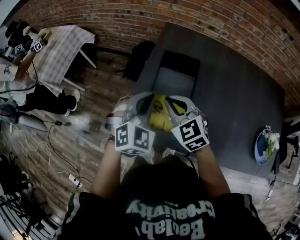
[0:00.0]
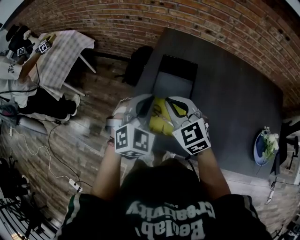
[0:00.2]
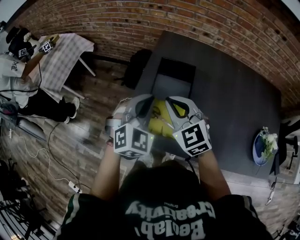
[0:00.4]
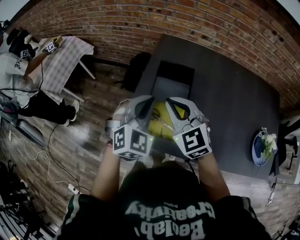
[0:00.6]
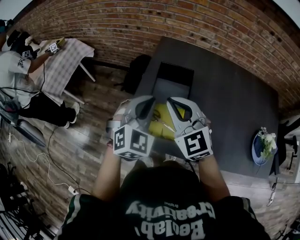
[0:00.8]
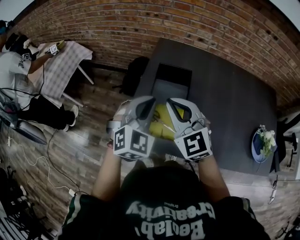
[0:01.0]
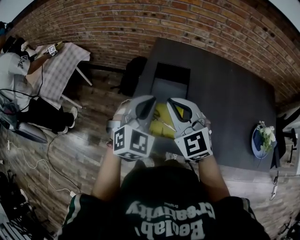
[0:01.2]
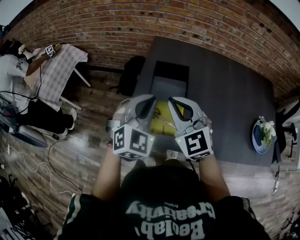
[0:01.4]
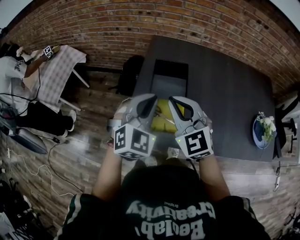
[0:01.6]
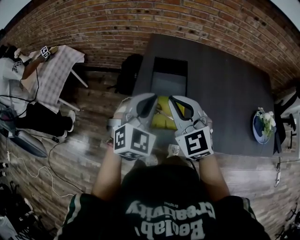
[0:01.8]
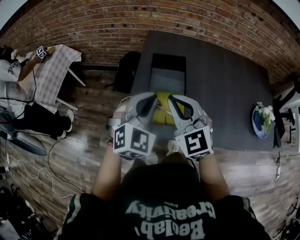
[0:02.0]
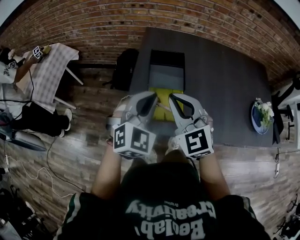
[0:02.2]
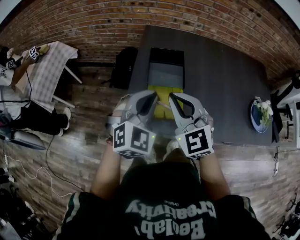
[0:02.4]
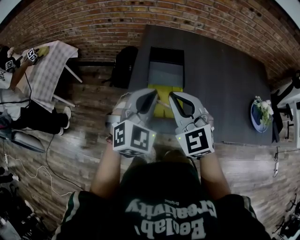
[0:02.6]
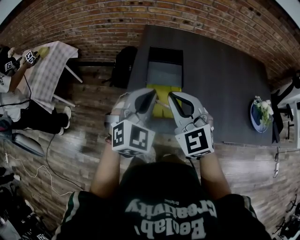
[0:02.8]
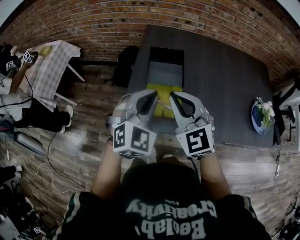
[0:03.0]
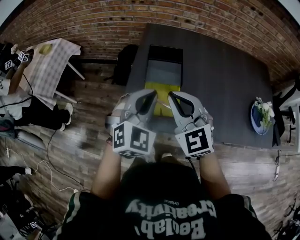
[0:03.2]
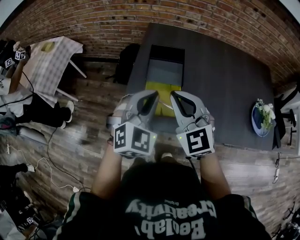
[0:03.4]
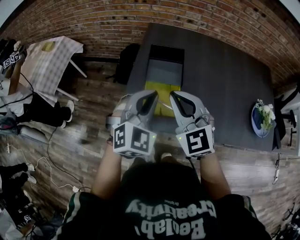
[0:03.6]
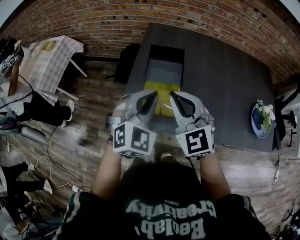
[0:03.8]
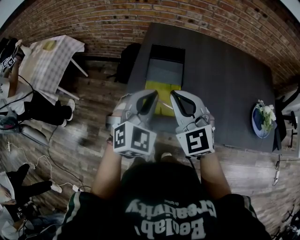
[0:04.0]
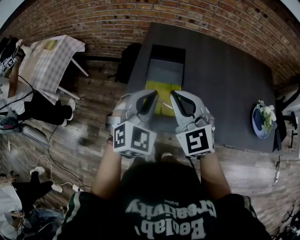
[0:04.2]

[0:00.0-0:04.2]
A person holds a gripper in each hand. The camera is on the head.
0:00.0 to 0:01.4: The left gripper heads upward, covering approximately 5 cm; the right gripper travels upward by roughly 10 cm.
0:01.4 to 0:02.8: Both grippers move backward, about 5 cm.
0:02.8 to 0:04.2: The grippers move only a little.

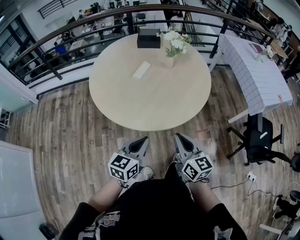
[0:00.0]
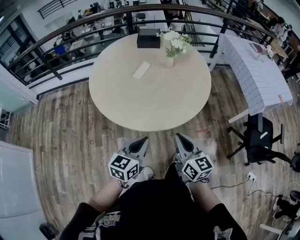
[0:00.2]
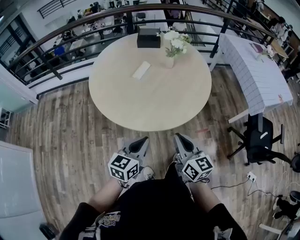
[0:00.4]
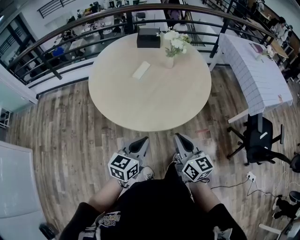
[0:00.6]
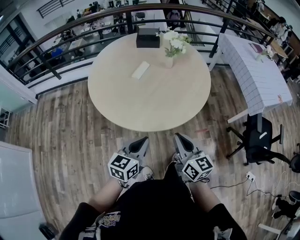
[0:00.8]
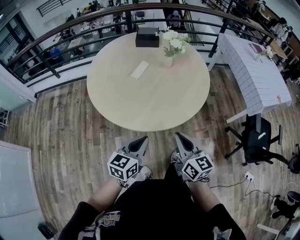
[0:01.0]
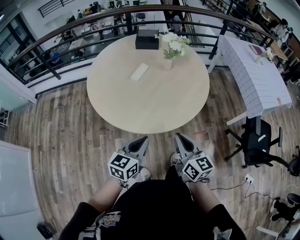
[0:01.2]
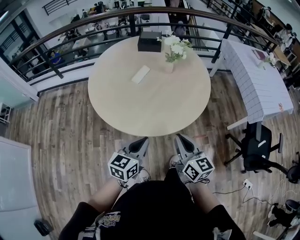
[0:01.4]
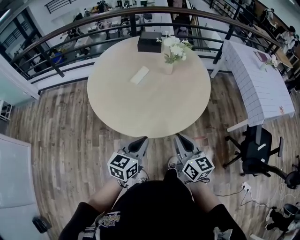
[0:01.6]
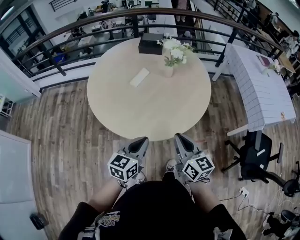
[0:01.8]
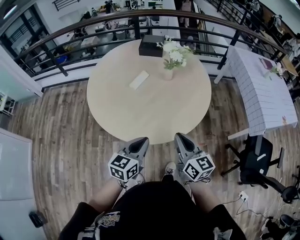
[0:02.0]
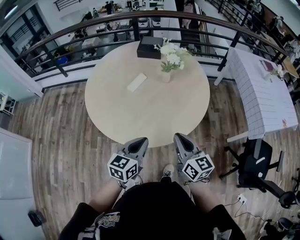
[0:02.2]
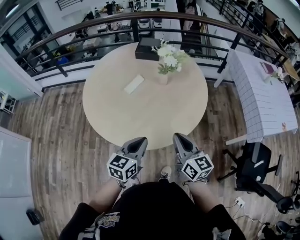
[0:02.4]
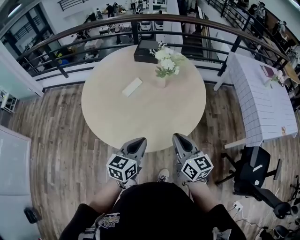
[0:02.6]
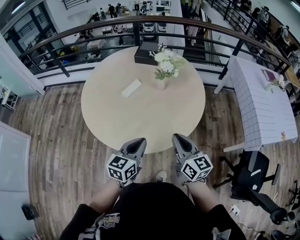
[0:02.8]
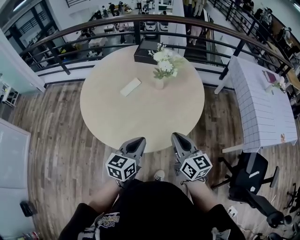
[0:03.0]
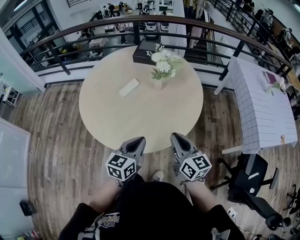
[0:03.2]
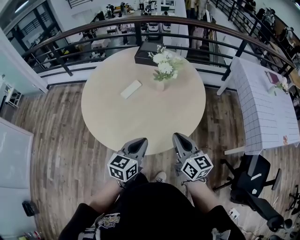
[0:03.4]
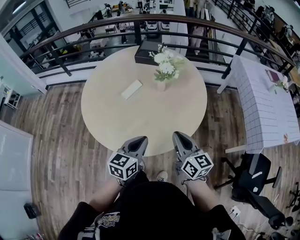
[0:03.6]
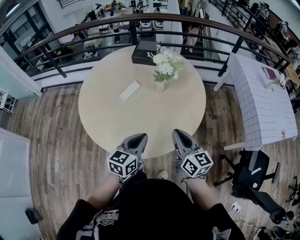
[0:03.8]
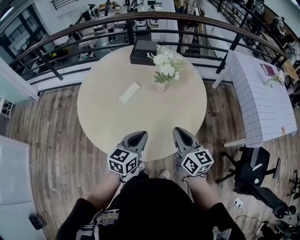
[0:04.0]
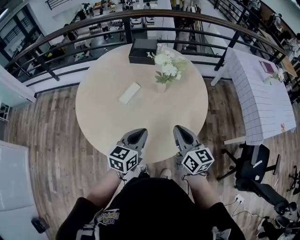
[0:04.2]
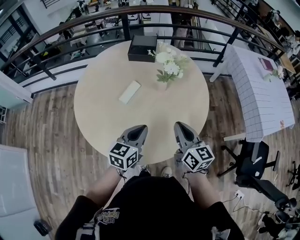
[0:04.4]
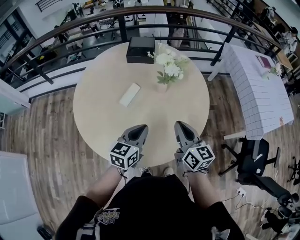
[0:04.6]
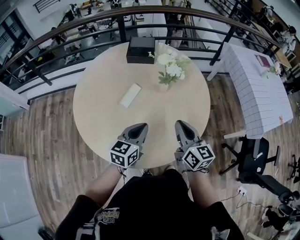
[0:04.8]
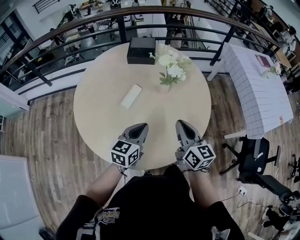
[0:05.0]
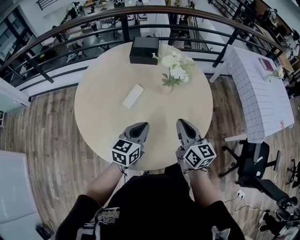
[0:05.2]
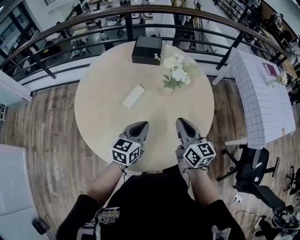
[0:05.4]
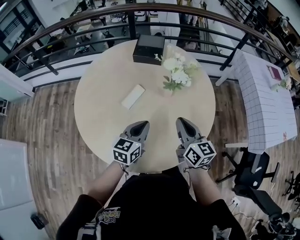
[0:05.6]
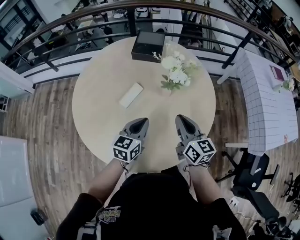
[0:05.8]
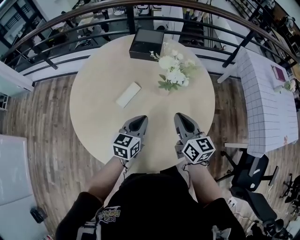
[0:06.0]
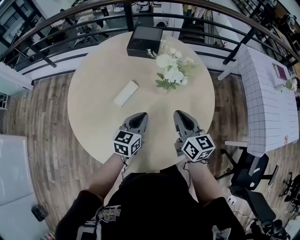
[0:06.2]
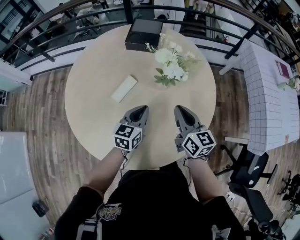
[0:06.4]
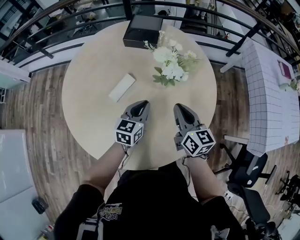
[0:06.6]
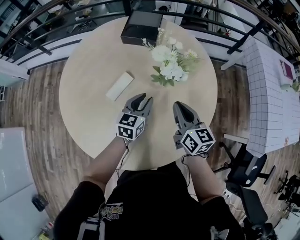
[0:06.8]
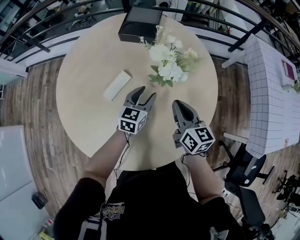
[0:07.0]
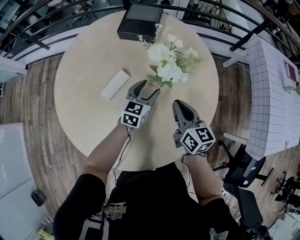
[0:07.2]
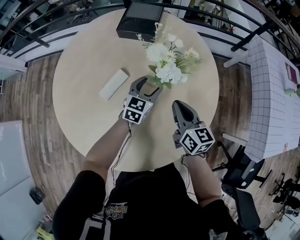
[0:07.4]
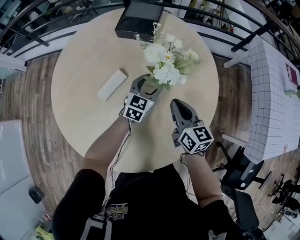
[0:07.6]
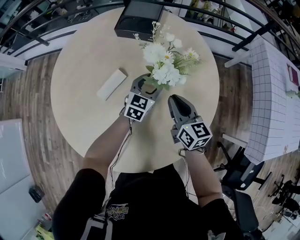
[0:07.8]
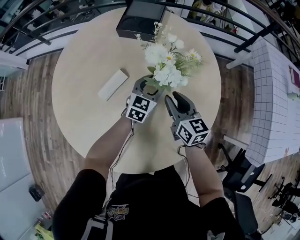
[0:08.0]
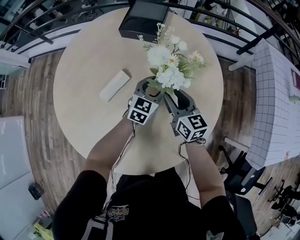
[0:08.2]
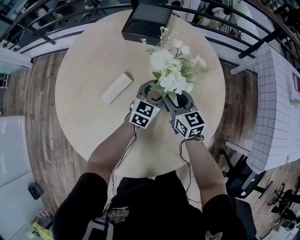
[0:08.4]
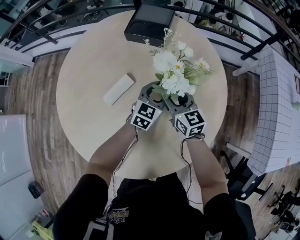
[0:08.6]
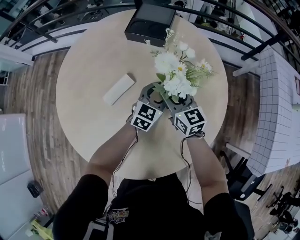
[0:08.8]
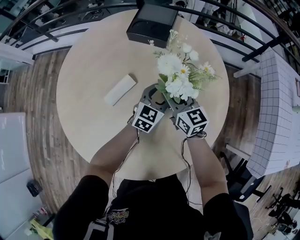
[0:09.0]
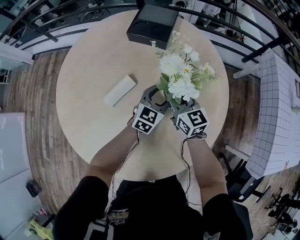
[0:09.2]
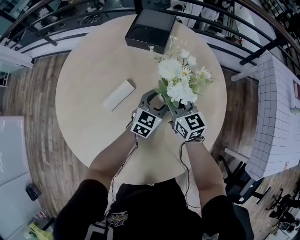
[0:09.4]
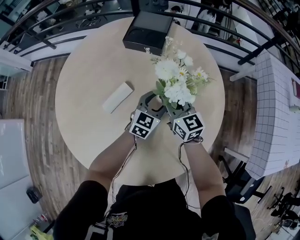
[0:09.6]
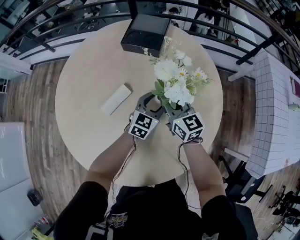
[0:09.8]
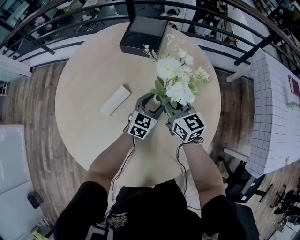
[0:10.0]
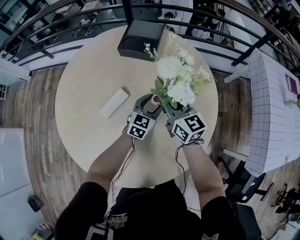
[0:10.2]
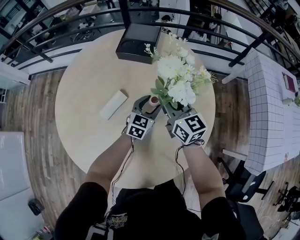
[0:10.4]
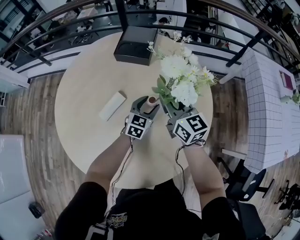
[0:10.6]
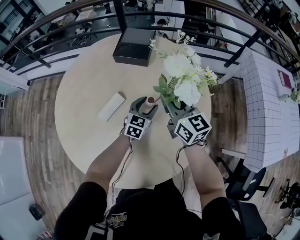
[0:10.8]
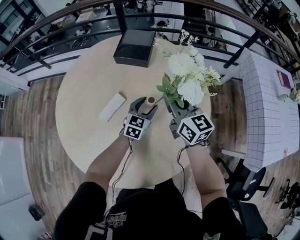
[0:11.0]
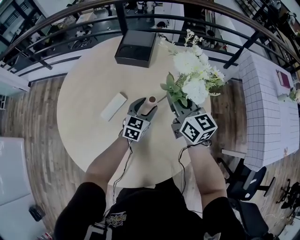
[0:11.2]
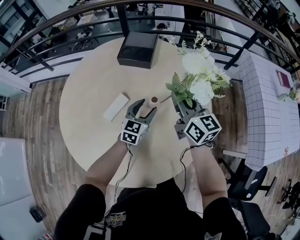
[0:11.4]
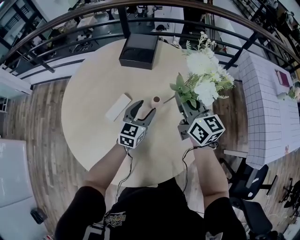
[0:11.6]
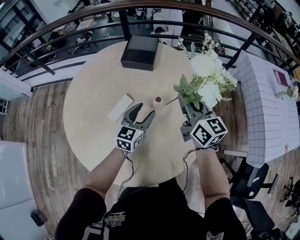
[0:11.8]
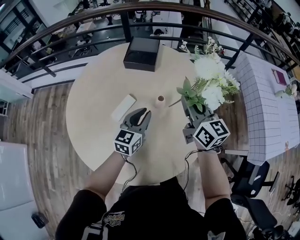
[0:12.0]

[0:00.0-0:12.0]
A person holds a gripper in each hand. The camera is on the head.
0:00.0 to 0:01.6: Both grippers travel together forward, about 5 cm.
0:01.6 to 0:03.0: The grippers both shift to the right and forward by some 15 cm.
0:03.0 to 0:04.4: The grippers both shift forward and to the left by about 15 cm.
0:04.4 to 0:06.0: The left gripper travels forward and downward by approximately 15 cm, while the right gripper goes roughly 10 cm forward.
0:06.0 to 0:07.6: The right gripper shifts some 15 cm forward and downward, while the left gripper heads forward, downward and to the right, covering roughly 25 cm, and opens its fingers.
0:07.6 to 0:09.0: The right gripper heads forward and to the left, covering approximately 10 cm, and opens up.
0:09.0 to 0:10.4: The right gripper is displaced upward by approximately 10 cm, and closes its fingers.
0:10.4 to 0:12.0: The left gripper heads upward, backward and to the left, covering roughly 20 cm, and closes, while the right gripper heads upward and backward, covering some 15 cm.

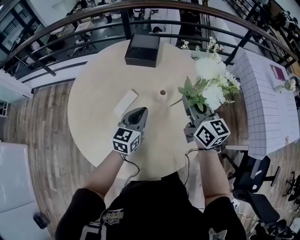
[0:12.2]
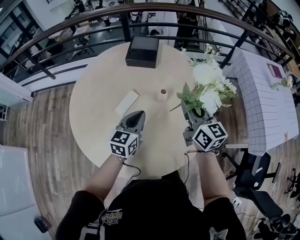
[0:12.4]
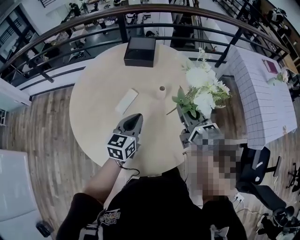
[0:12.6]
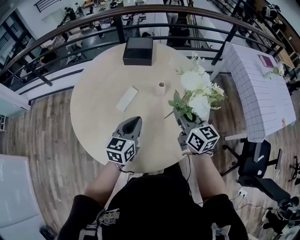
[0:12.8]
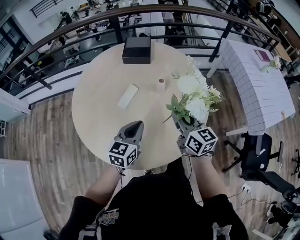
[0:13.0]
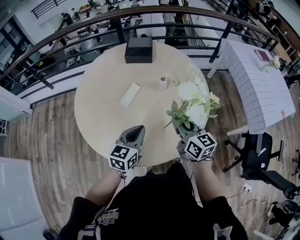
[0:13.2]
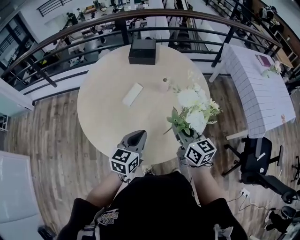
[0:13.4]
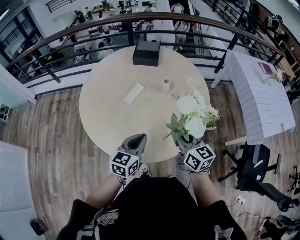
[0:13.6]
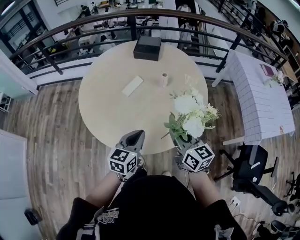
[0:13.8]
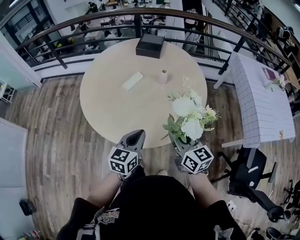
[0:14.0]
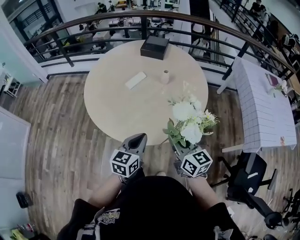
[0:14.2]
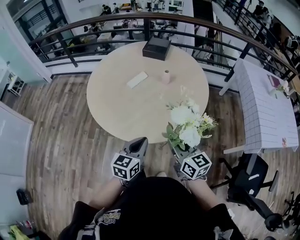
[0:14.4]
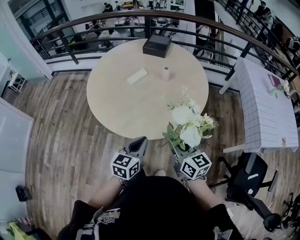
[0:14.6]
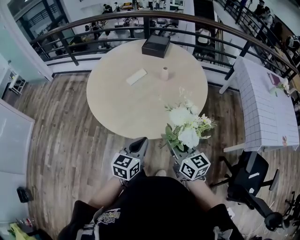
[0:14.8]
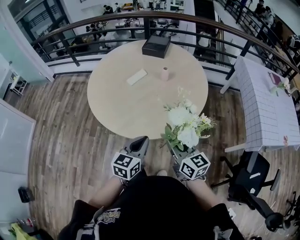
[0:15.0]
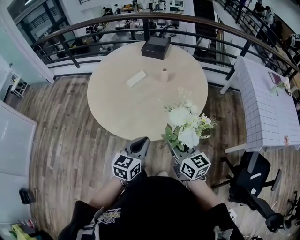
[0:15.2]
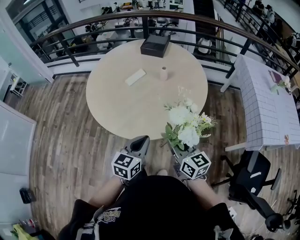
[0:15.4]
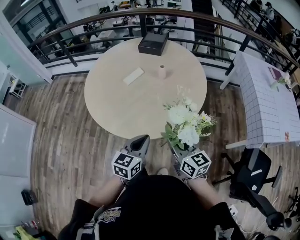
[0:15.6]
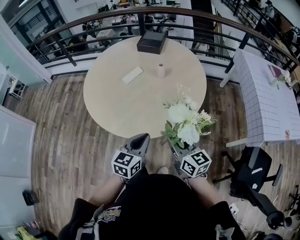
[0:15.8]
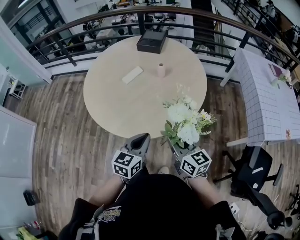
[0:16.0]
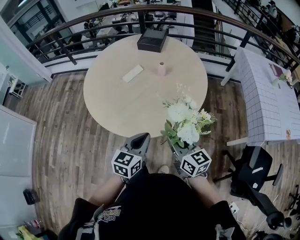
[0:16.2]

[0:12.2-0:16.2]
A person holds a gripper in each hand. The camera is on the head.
0:12.2 to 0:13.6: Both grippers move backward, some 25 cm.
0:13.6 to 0:14.8: The left gripper goes about 20 cm backward and to the right. The right gripper shifts about 15 cm backward.
0:14.8 to 0:16.2: The grippers move only a little.

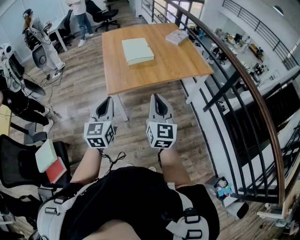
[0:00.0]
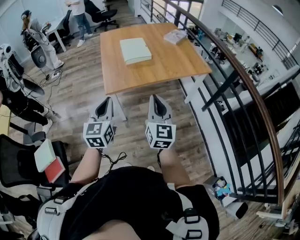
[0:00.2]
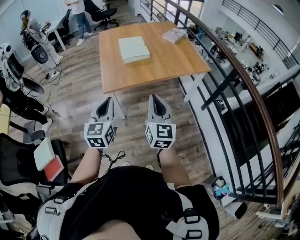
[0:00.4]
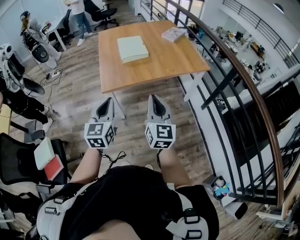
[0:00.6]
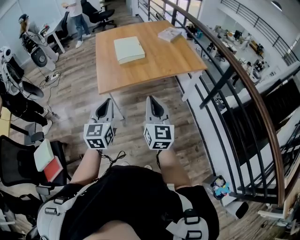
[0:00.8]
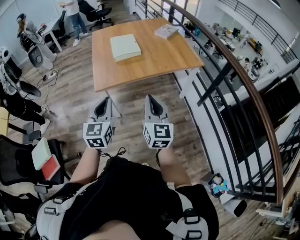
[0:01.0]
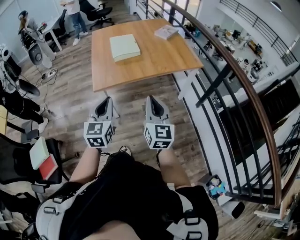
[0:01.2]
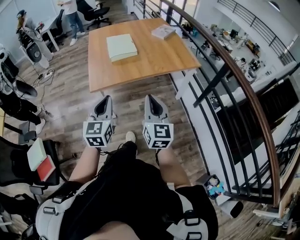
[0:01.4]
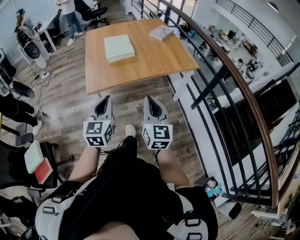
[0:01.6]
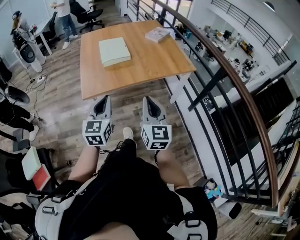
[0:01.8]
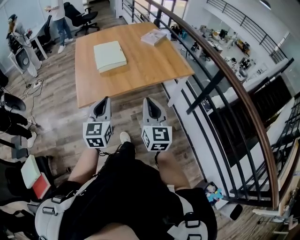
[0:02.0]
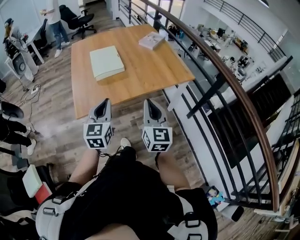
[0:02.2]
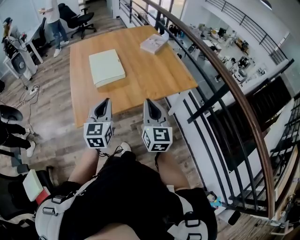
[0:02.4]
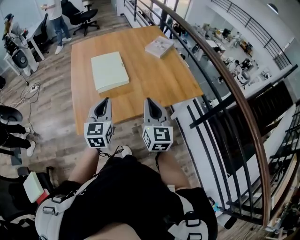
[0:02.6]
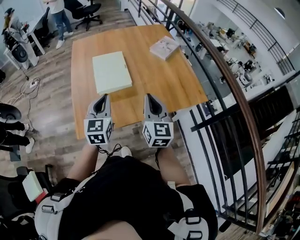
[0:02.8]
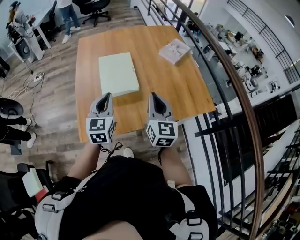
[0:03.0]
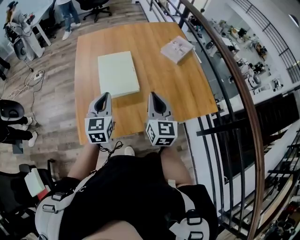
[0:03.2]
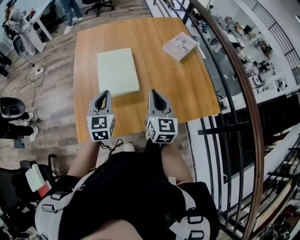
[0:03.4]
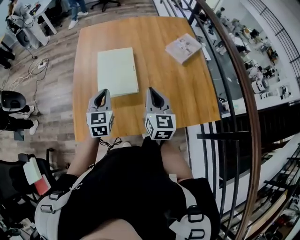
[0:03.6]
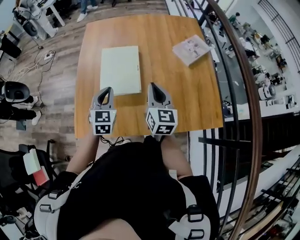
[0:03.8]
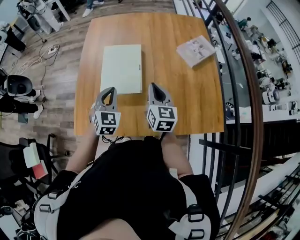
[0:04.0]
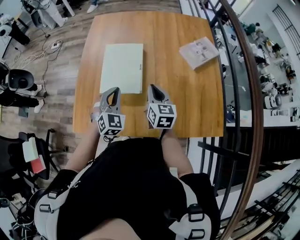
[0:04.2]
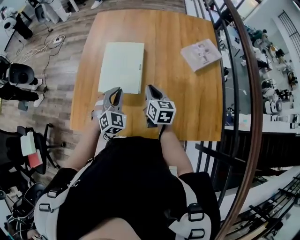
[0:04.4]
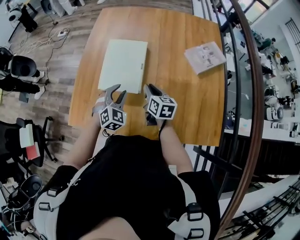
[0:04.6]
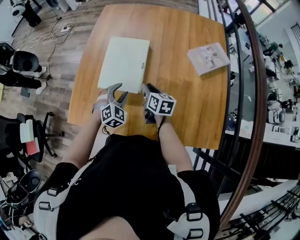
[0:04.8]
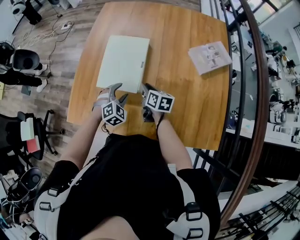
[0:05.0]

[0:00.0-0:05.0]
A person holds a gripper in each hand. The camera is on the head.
0:00.0 to 0:01.6: Both grippers move to the right, some 10 cm.
0:01.6 to 0:03.4: The pair of grippers is taken forward, approximately 50 cm.
0:03.4 to 0:05.0: The two grippers go some 20 cm downward. The left gripper angles its fingers downward, by approximately 30 degrees, and opens its fingers, while the right gripper rotates about 50 degrees.
